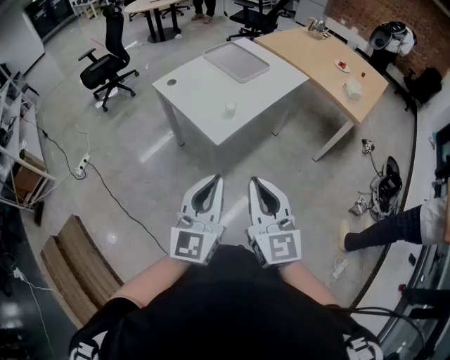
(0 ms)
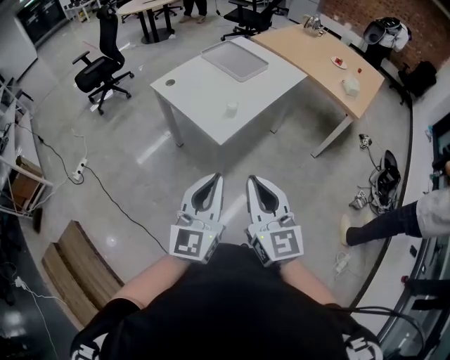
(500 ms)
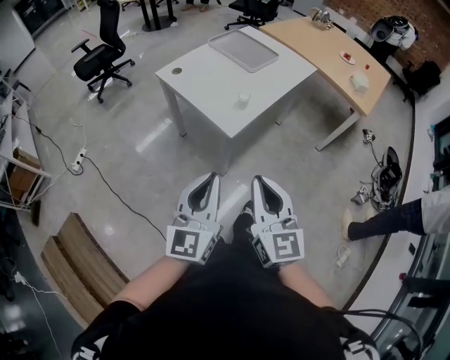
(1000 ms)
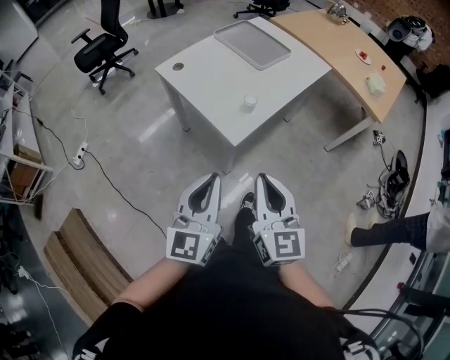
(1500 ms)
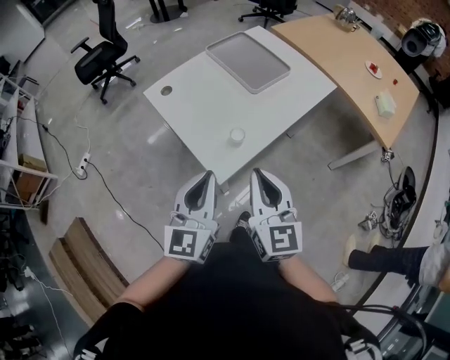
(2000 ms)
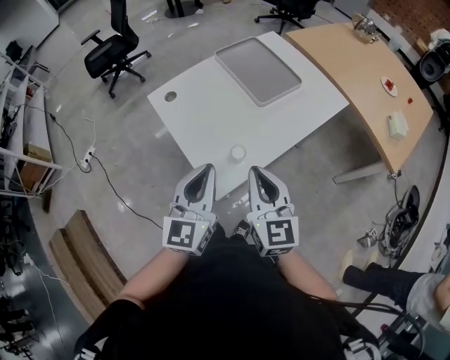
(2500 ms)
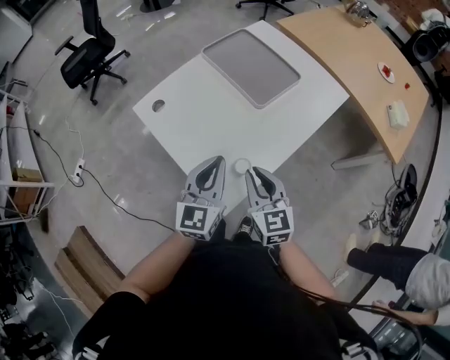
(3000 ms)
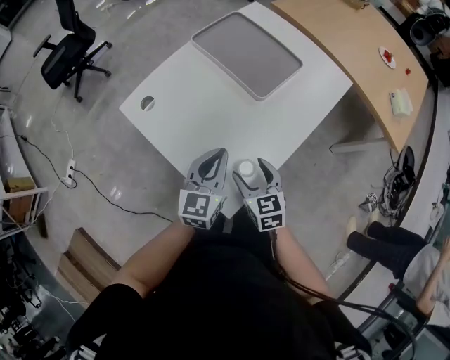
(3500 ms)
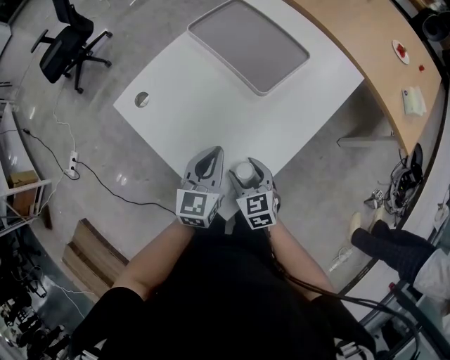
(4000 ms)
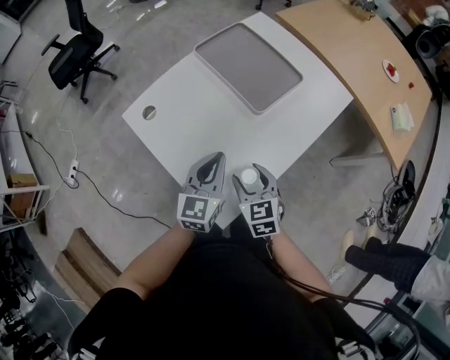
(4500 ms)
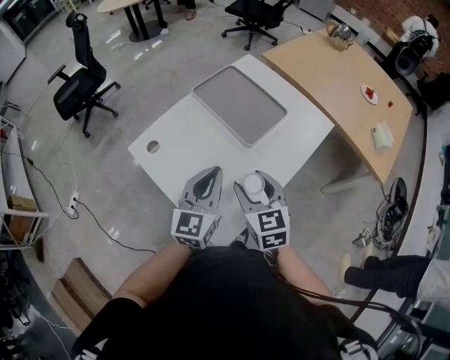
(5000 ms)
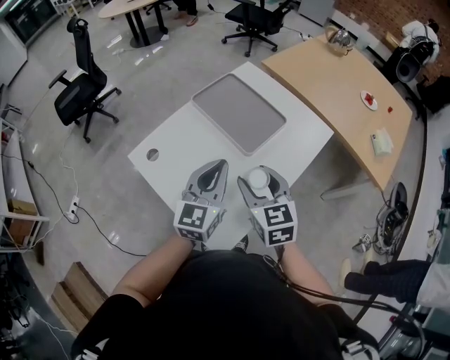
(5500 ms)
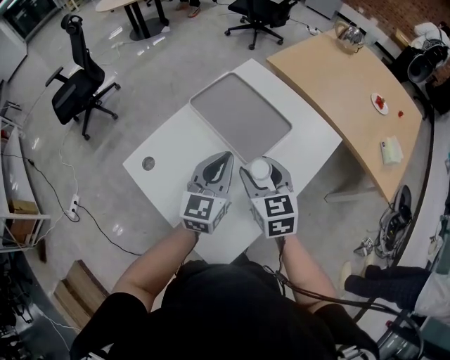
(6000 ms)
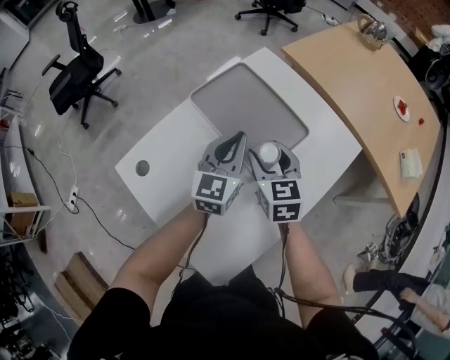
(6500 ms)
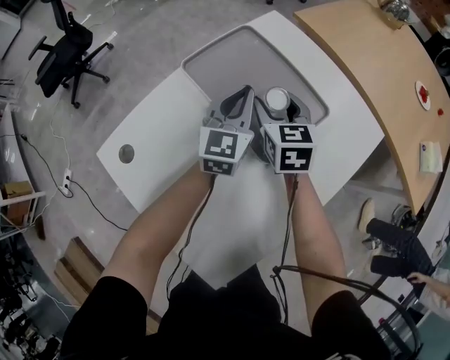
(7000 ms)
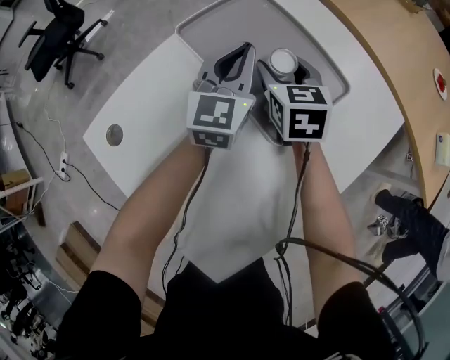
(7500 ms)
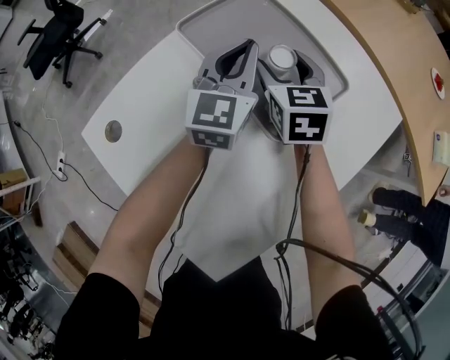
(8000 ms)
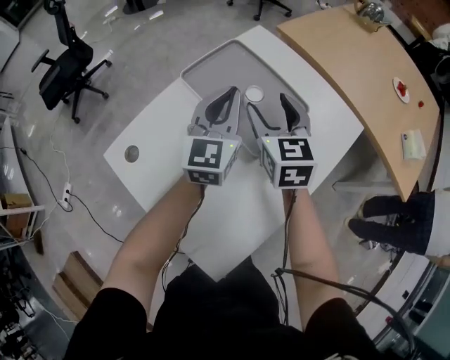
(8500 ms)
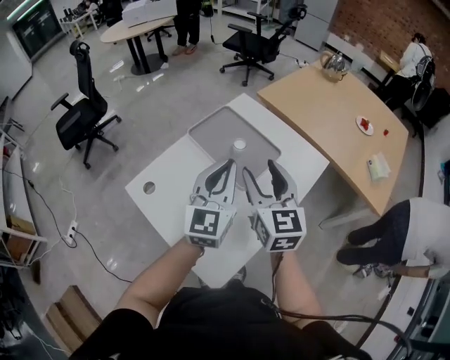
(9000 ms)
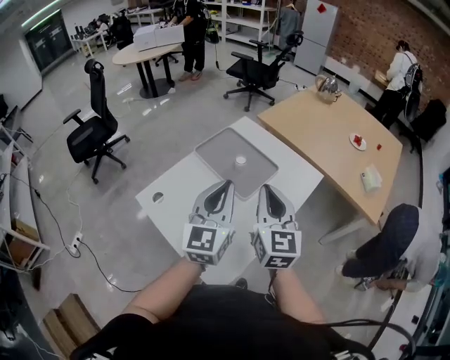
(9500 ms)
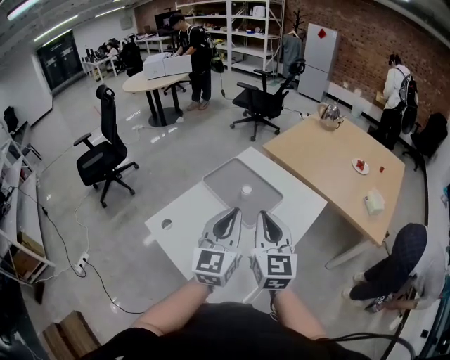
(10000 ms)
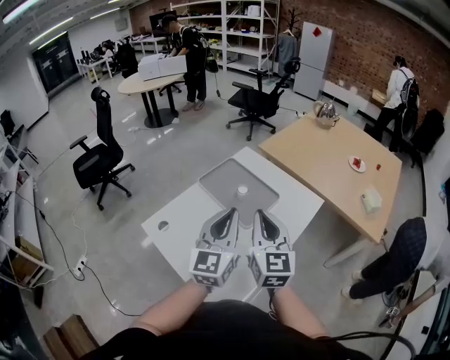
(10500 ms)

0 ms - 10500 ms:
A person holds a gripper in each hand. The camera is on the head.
0 ms - 2000 ms: The two grippers go about 30 cm forward.
2000 ms - 4000 ms: The left gripper shifts approximately 35 cm forward and downward, and rotates approximately 20 degrees; the right gripper goes roughly 35 cm downward and forward, points its fingers about 30 degrees further downward, and opens up.
4000 ms - 6500 ms: The left gripper goes roughly 25 cm forward, while the right gripper is displaced forward and upward by some 35 cm.
6500 ms - 8500 ms: The right gripper moves approximately 15 cm downward and comes back, while the left gripper goes downward and returns, some 10 cm each way.
8500 ms - 10500 ms: Both grippers travel together backward and upward, approximately 35 cm. The right gripper swivels some 20 degrees, and closes.

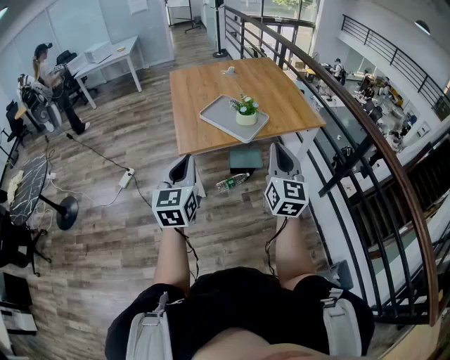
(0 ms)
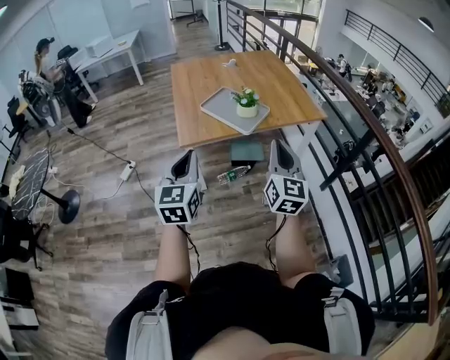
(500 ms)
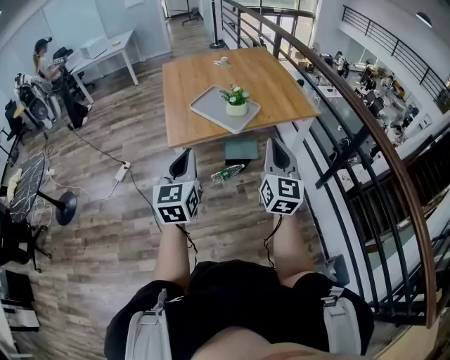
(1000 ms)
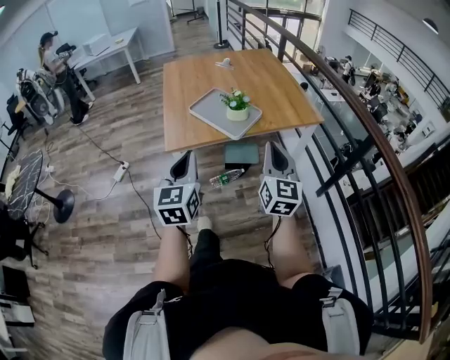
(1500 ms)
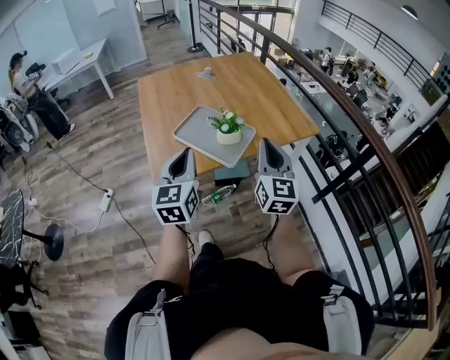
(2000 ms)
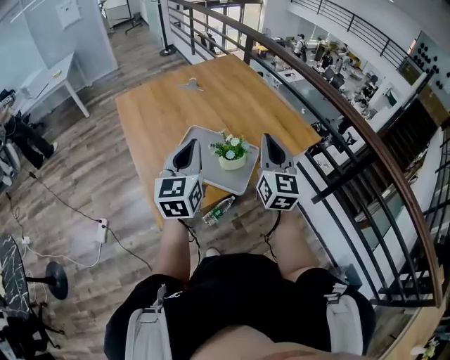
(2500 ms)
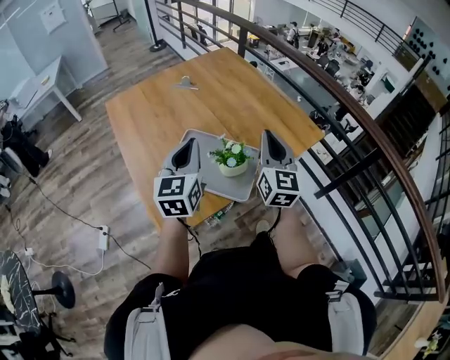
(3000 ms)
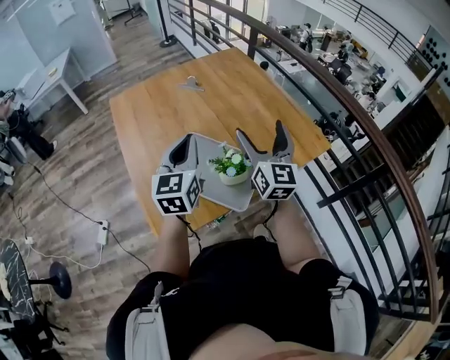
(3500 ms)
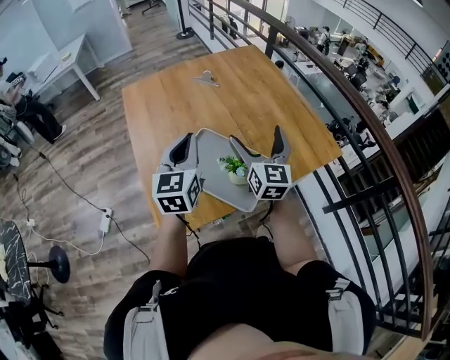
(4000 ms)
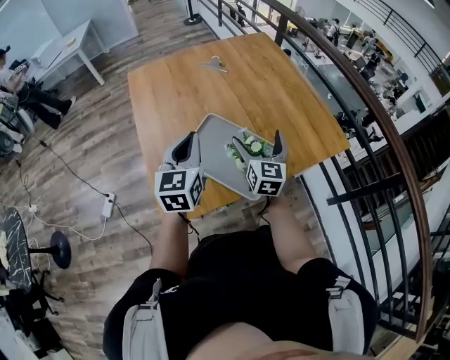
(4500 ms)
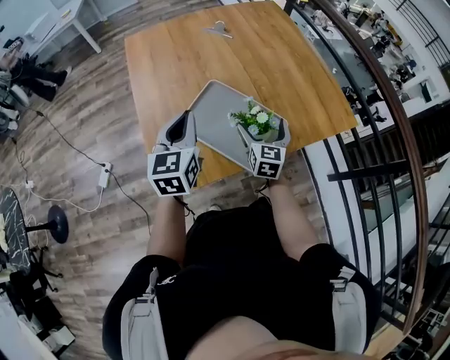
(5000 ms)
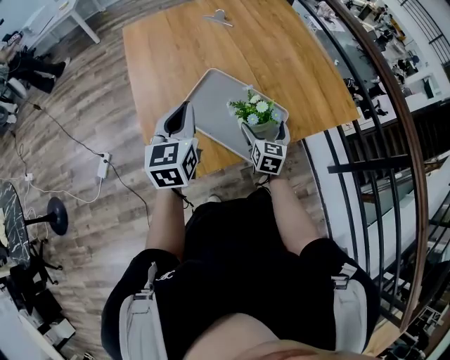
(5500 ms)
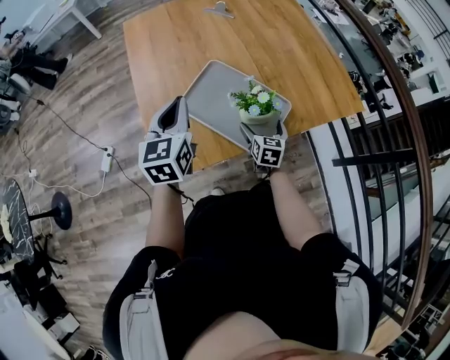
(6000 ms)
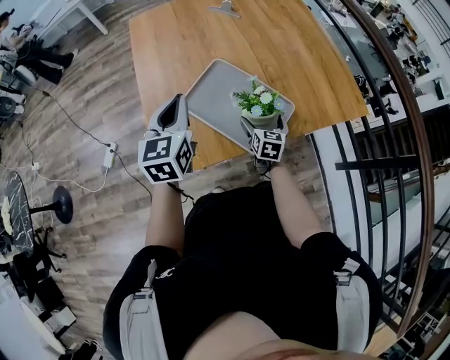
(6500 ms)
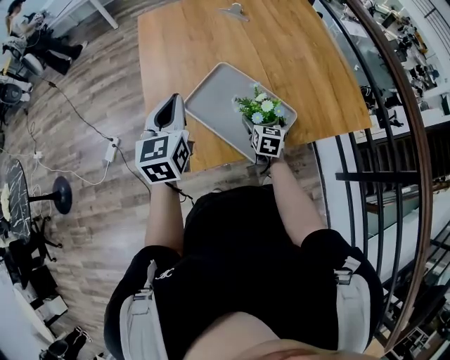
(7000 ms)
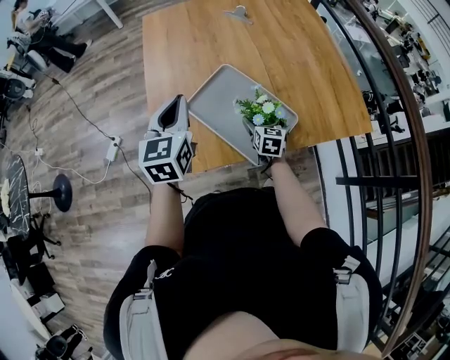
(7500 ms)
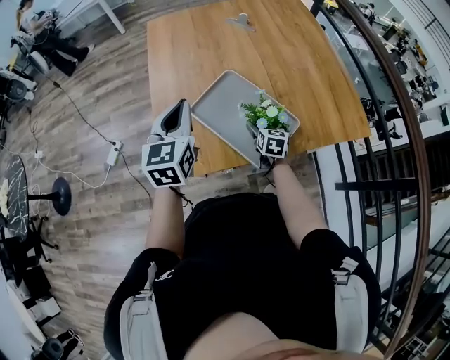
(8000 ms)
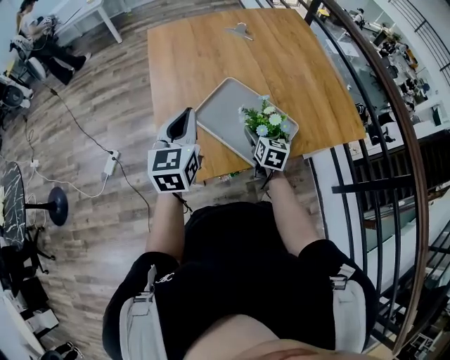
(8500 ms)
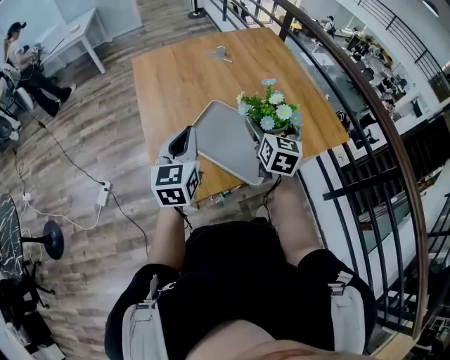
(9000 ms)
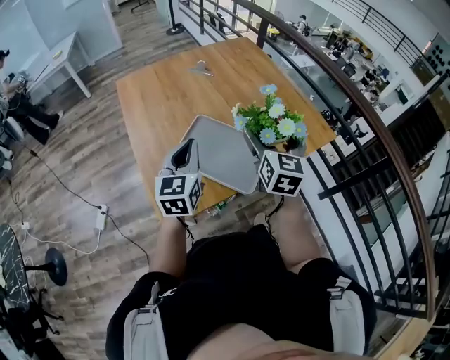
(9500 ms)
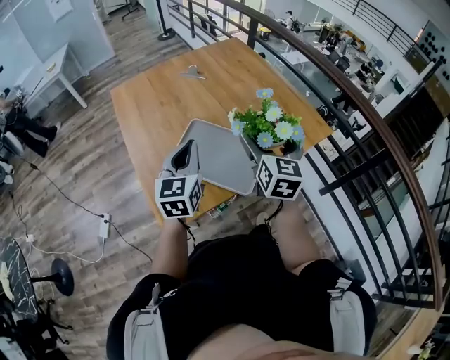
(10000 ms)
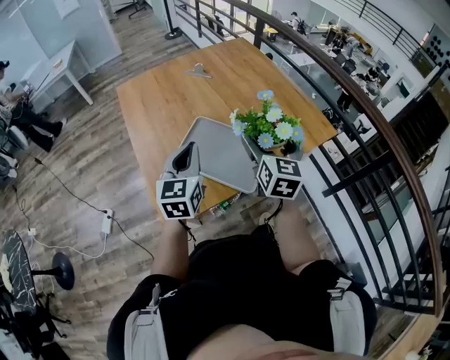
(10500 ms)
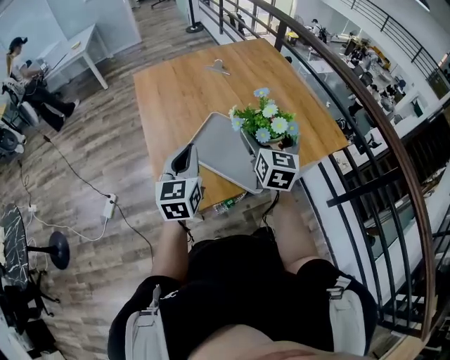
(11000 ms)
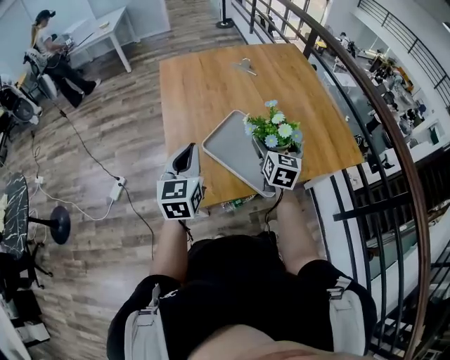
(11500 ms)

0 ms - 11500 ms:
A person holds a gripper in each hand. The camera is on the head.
0 ms - 2000 ms: Both grippers travel together forward, roughly 25 cm.
2000 ms - 4000 ms: The two grippers go roughly 30 cm forward. The right gripper opens up.
4000 ms - 6000 ms: The left gripper heads downward and to the left, covering about 10 cm, while the right gripper is displaced downward by approximately 30 cm, and tips its fingers downward by about 30 degrees.
6000 ms - 7500 ms: The right gripper shifts roughly 5 cm forward.
7500 ms - 9500 ms: The left gripper shifts by roughly 5 cm. The right gripper moves upward, roughly 30 cm, and changes its angle by roughly 30 degrees.
9500 ms - 11500 ms: The left gripper moves to the left and backward, roughly 10 cm. Meanwhile the right gripper goes roughly 15 cm downward and to the left.

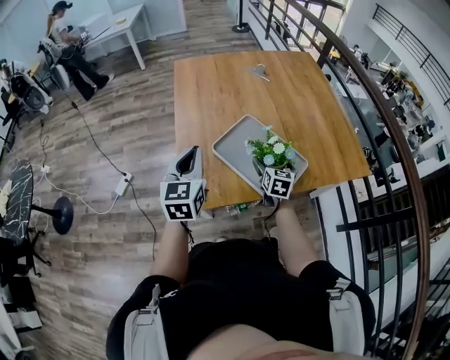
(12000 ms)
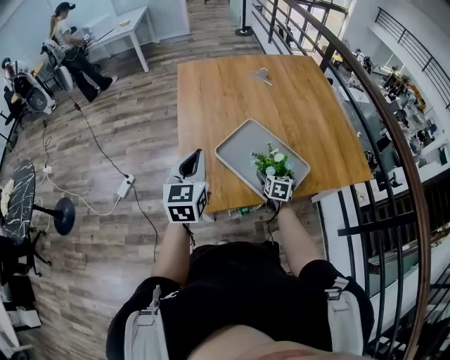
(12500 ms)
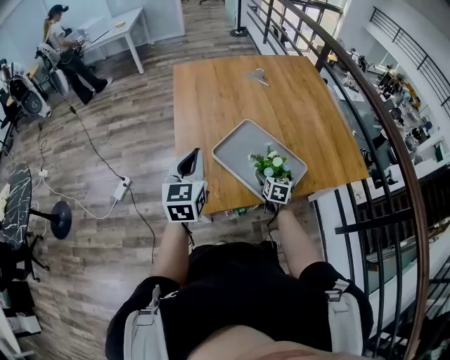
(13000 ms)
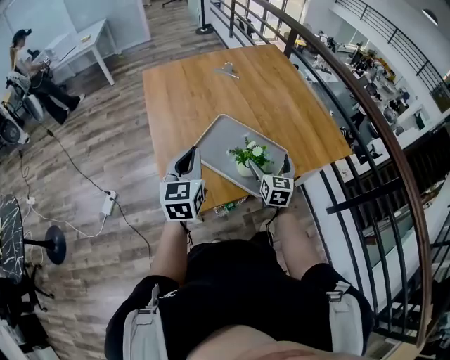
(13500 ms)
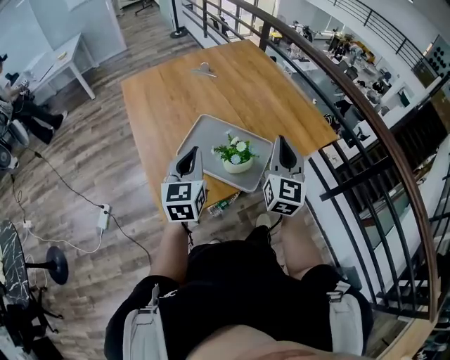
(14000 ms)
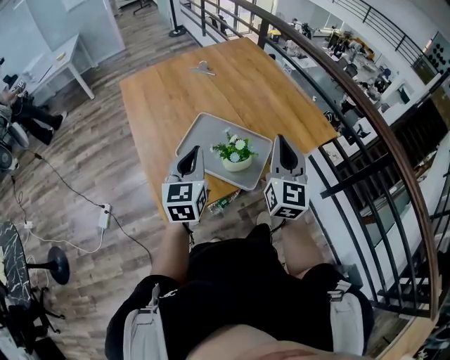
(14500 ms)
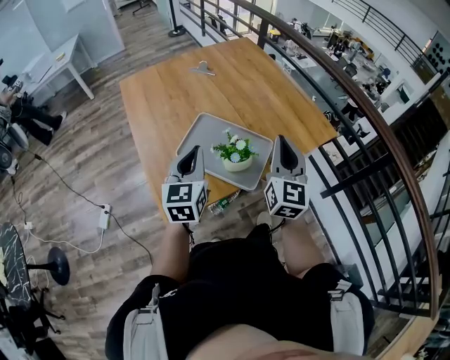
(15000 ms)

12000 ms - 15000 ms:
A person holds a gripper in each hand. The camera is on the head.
12000 ms - 13500 ms: The right gripper ends up some 10 cm from where it was.
13500 ms - 15000 ms: The left gripper is displaced to the right by about 5 cm. The right gripper moves upward, roughly 20 cm, rotates approximately 20 degrees, and closes up.

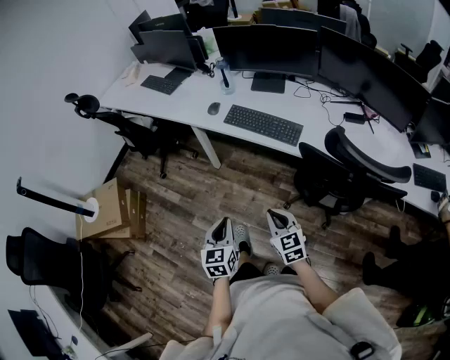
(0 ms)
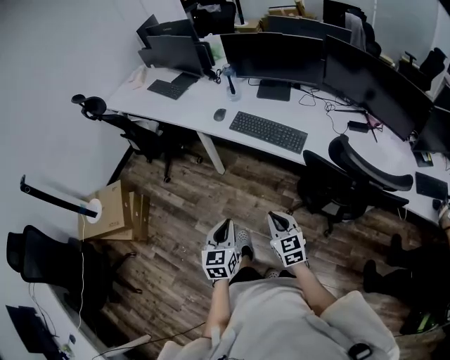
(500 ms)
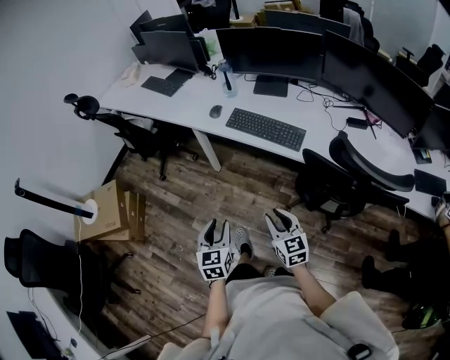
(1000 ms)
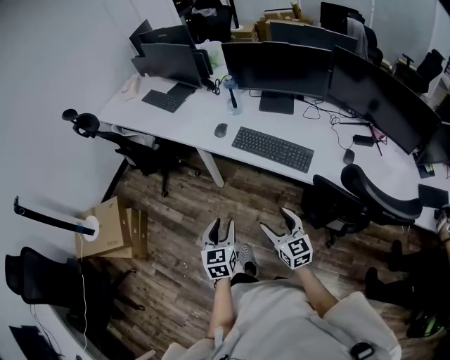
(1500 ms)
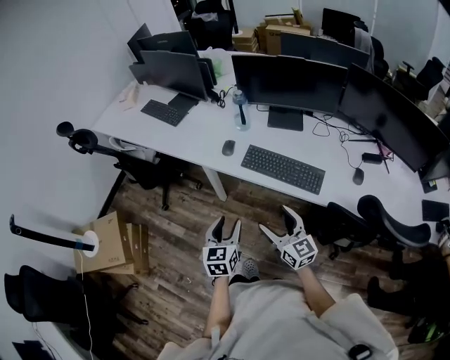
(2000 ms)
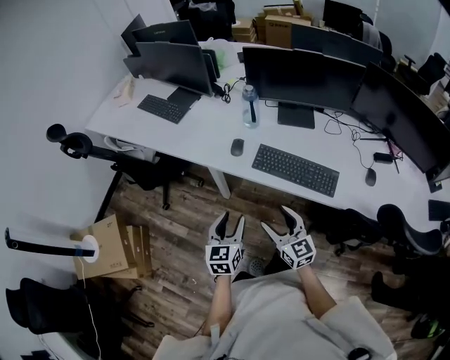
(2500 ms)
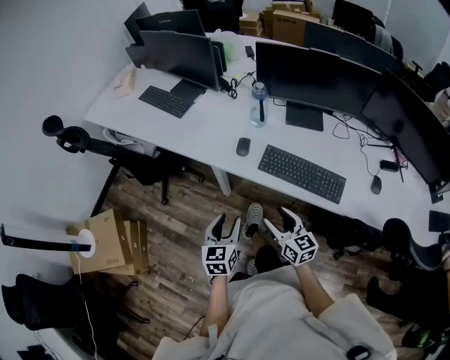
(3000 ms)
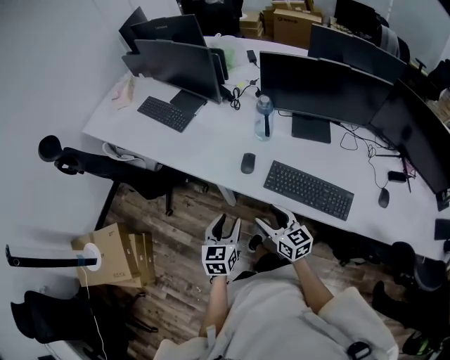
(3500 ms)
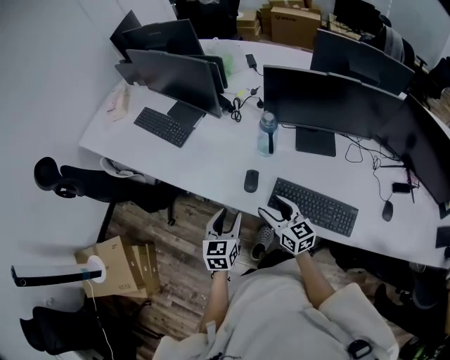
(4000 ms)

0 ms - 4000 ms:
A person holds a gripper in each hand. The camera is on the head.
0 ms - 2000 ms: The grippers both shift forward by some 25 cm. The left gripper opens; the right gripper rotates some 20 degrees, and opens.
2000 ms - 4000 ms: Both grippers travel together forward, some 30 cm.
